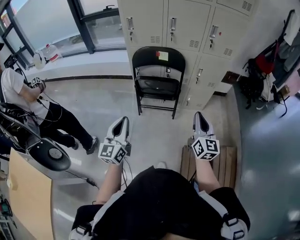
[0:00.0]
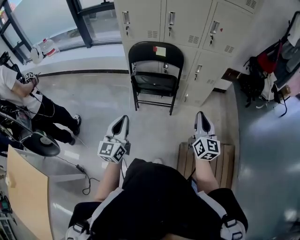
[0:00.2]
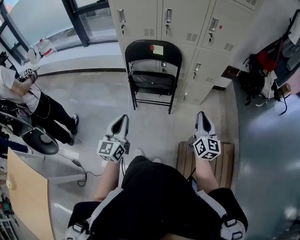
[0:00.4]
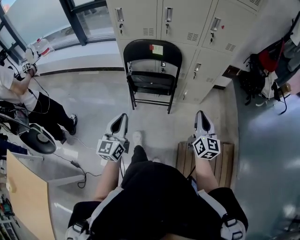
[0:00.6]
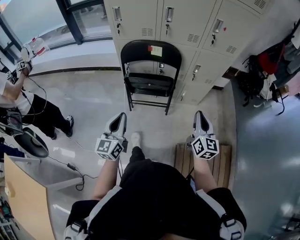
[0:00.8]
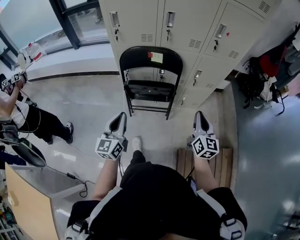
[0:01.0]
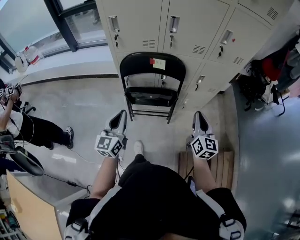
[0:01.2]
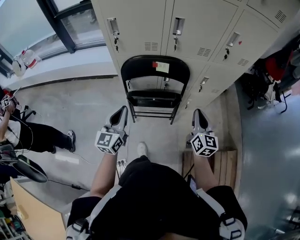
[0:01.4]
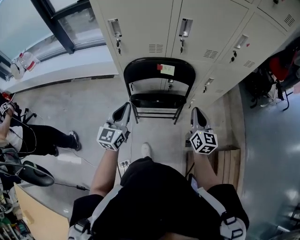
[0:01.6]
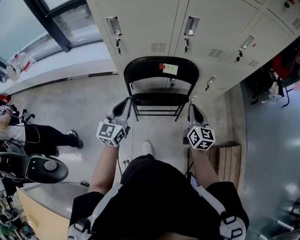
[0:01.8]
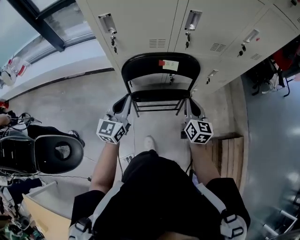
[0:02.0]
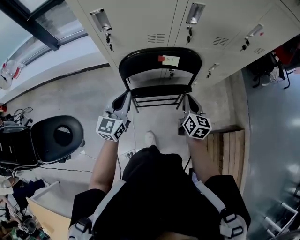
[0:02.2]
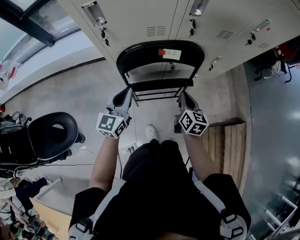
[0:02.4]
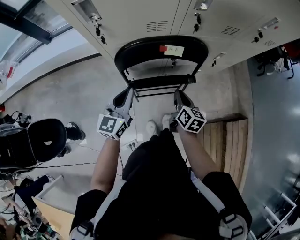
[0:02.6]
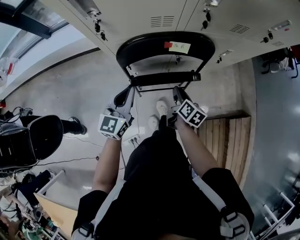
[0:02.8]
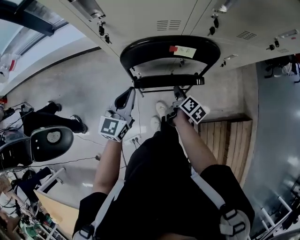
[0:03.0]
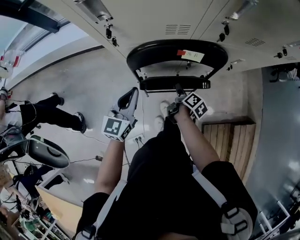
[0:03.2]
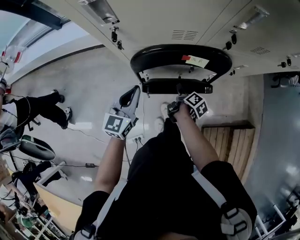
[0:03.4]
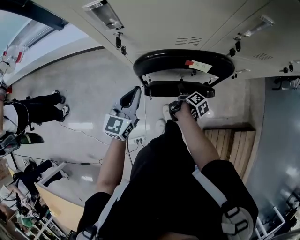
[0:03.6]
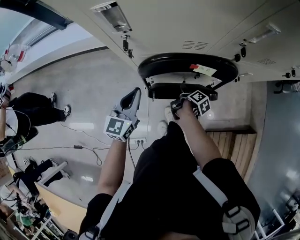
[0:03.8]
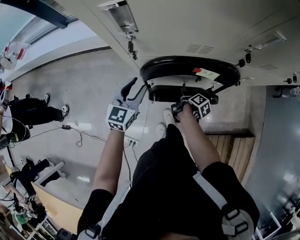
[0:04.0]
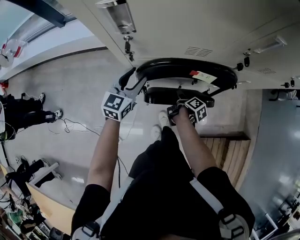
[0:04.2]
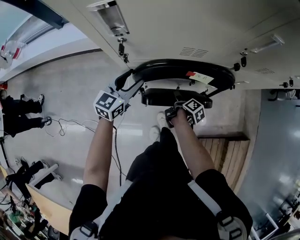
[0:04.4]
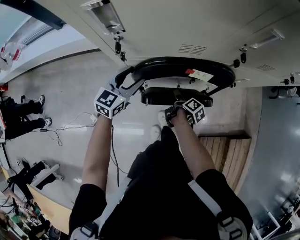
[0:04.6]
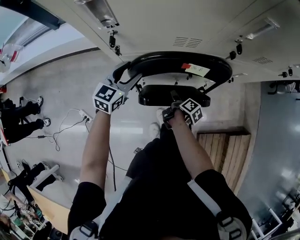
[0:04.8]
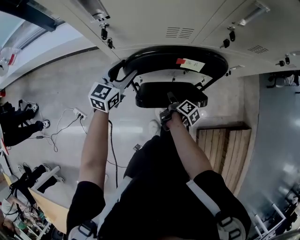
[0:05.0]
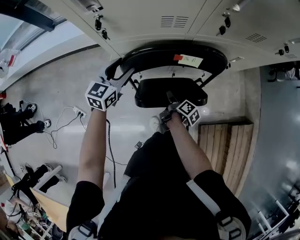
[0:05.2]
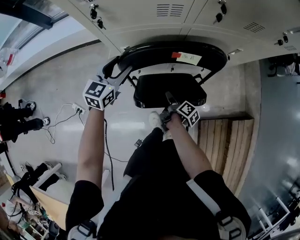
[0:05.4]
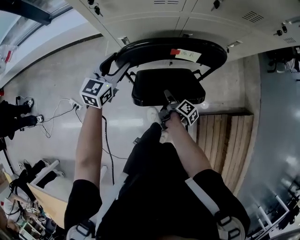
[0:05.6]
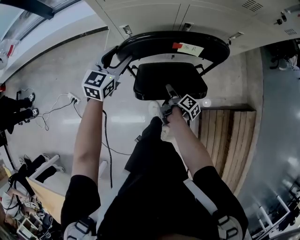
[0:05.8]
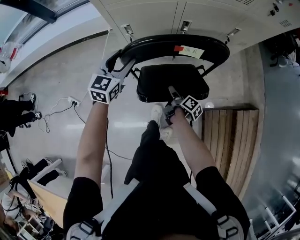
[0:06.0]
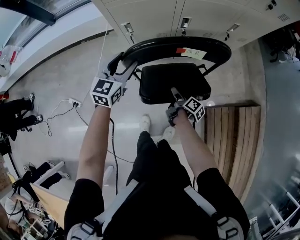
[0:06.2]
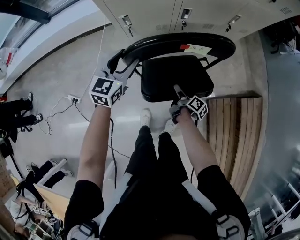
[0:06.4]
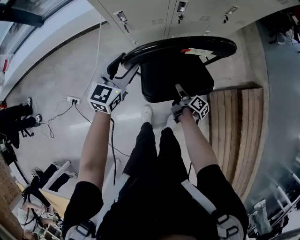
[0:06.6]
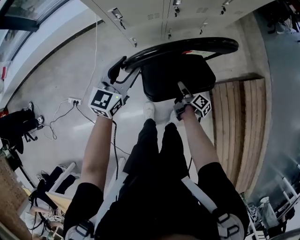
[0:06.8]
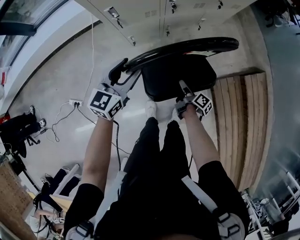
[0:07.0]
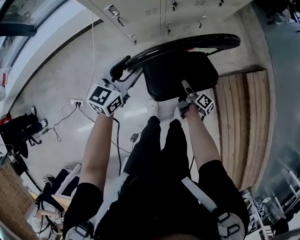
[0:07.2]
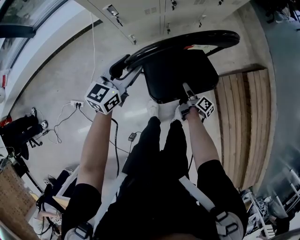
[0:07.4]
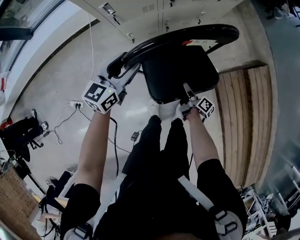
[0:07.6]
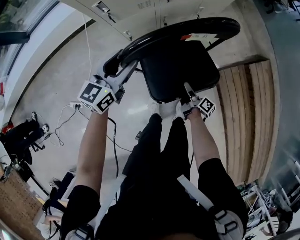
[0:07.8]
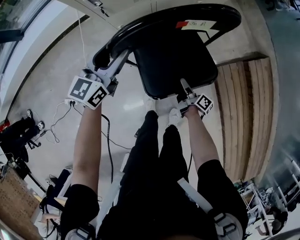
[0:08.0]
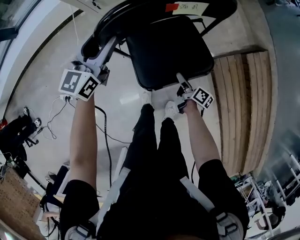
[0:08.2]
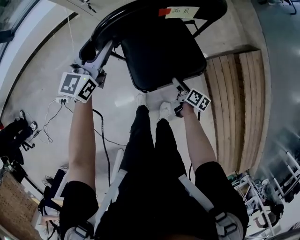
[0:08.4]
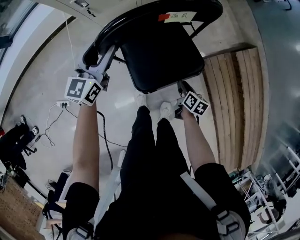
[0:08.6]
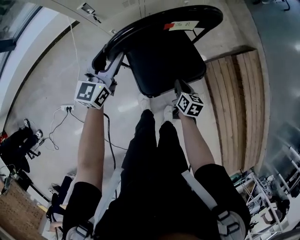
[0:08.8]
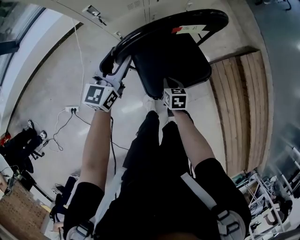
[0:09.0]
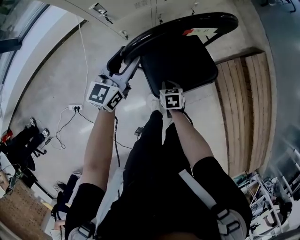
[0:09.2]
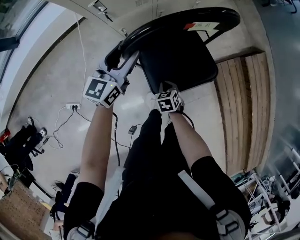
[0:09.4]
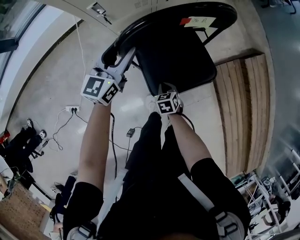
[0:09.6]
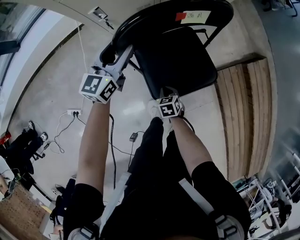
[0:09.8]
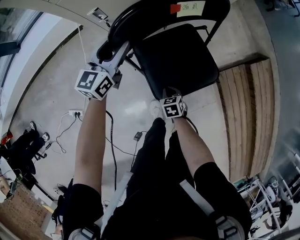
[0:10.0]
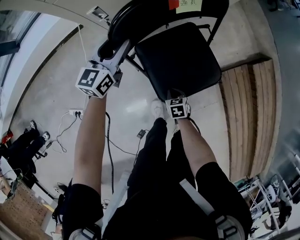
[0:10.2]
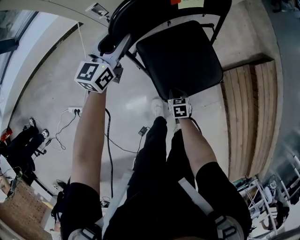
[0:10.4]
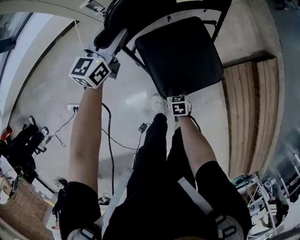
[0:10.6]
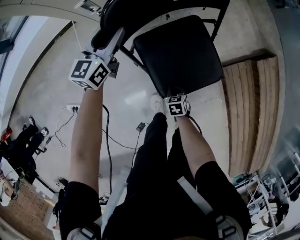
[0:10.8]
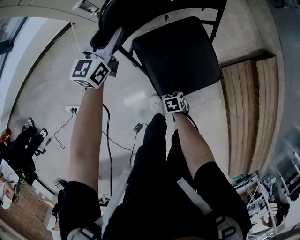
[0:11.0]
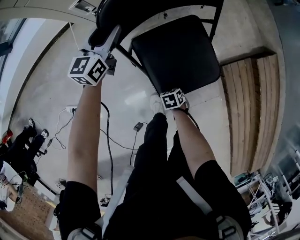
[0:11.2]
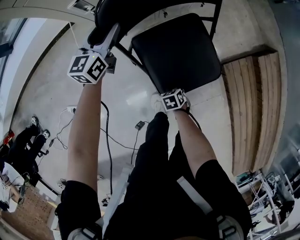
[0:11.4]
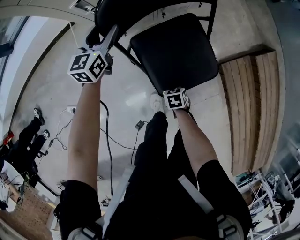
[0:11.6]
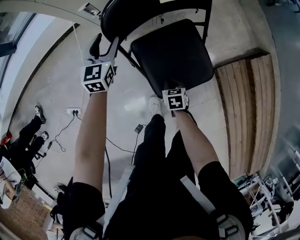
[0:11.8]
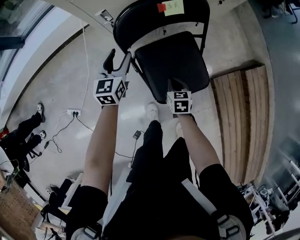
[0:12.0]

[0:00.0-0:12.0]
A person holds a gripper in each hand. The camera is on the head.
0.0 to 1.6 s: The two grippers go some 30 cm forward.
1.6 to 3.0 s: The right gripper travels downward and to the left by some 25 cm, twists approximately 50 degrees clockwise, seen from behind, and opens up, while the left gripper shifts about 15 cm downward and forward.
3.0 to 4.4 s: The right gripper shifts some 10 cm downward and forward, and changes its angle by some 20 degrees; the left gripper goes approximately 10 cm forward, and opens its fingers.
4.4 to 6.0 s: The left gripper travels backward by roughly 15 cm; the right gripper shifts approximately 20 cm backward.
6.0 to 7.6 s: The left gripper goes roughly 10 cm backward, and rotates approximately 30 degrees; the right gripper moves backward, downward and to the right, some 15 cm.
7.6 to 9.0 s: The right gripper travels to the left by approximately 10 cm, rotates around the line of its fingers by roughly 60 degrees, counterclockwise from behind, and closes its fingers.
9.0 to 10.4 s: The left gripper goes some 15 cm forward, downward and to the left. The right gripper goes roughly 15 cm downward.
10.4 to 12.0 s: The right gripper goes approximately 10 cm upward. The left gripper shifts by roughly 5 cm.

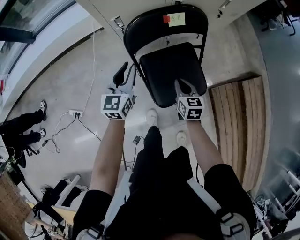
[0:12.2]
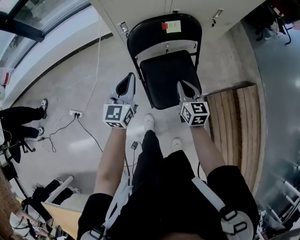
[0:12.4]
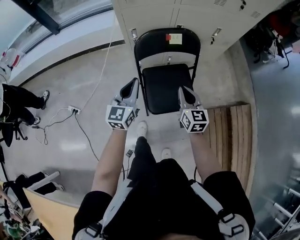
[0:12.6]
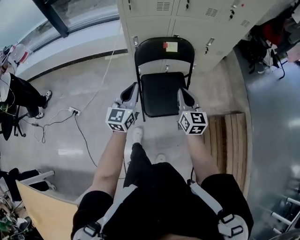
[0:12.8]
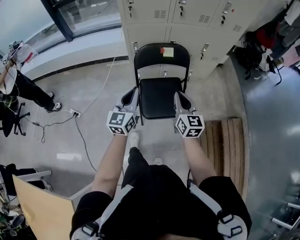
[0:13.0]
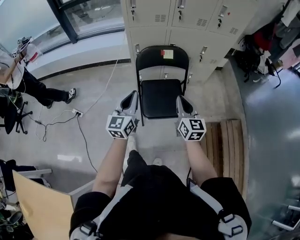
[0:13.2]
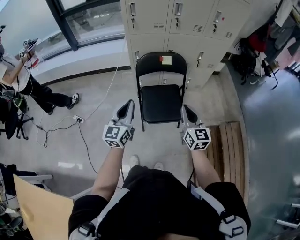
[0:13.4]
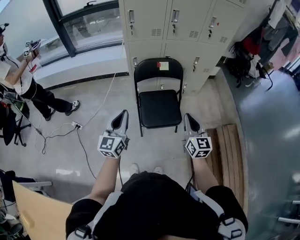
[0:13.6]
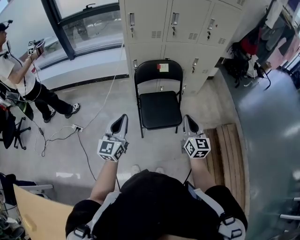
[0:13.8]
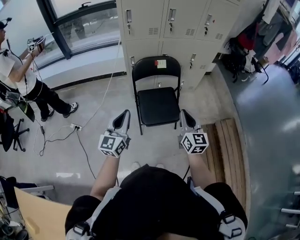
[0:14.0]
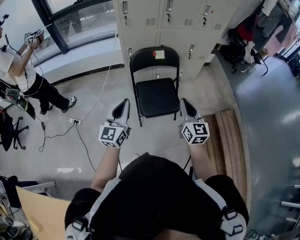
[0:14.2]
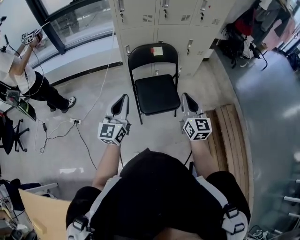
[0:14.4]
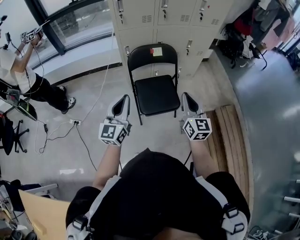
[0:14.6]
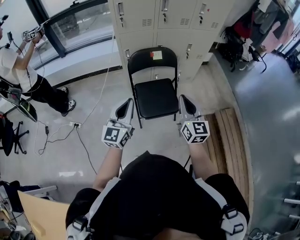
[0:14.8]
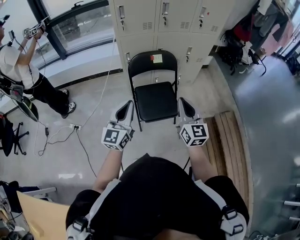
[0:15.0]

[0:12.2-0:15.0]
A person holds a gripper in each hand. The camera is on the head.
12.2 to 13.6 s: The left gripper travels backward and upward by roughly 40 cm, swivels about 20 degrees, and closes. Meanwhile the right gripper shifts approximately 40 cm upward and backward, and tips its fingers upward by about 30 degrees.
13.6 to 15.0 s: The right gripper moves approximately 5 cm.

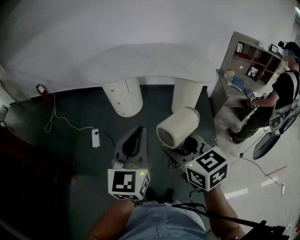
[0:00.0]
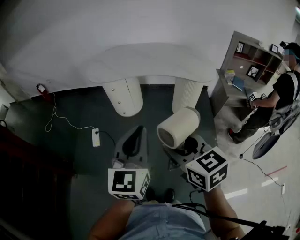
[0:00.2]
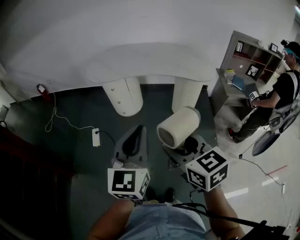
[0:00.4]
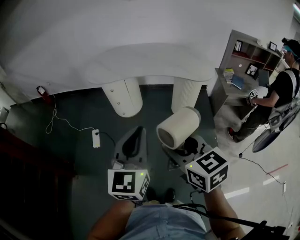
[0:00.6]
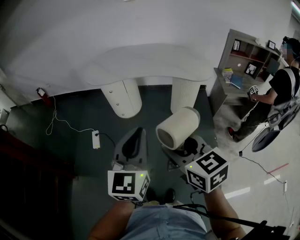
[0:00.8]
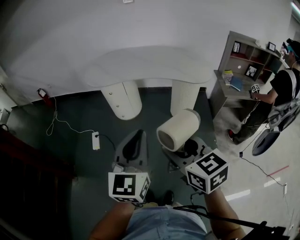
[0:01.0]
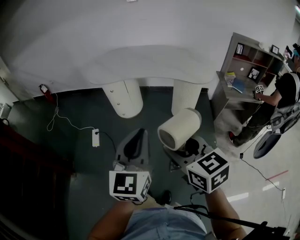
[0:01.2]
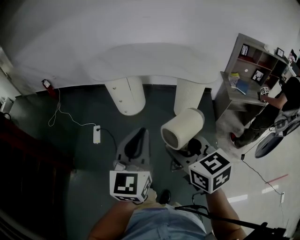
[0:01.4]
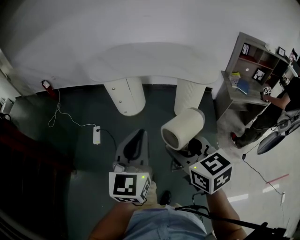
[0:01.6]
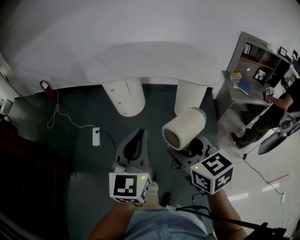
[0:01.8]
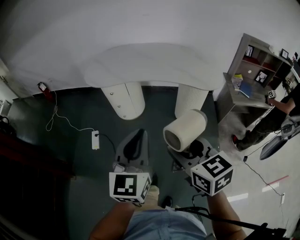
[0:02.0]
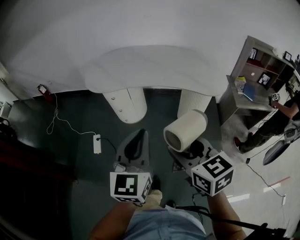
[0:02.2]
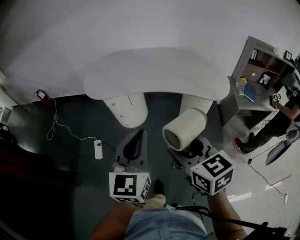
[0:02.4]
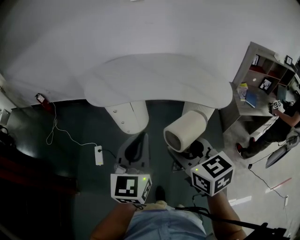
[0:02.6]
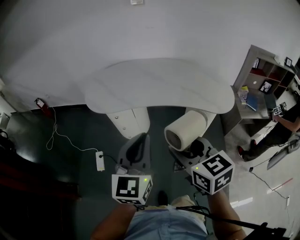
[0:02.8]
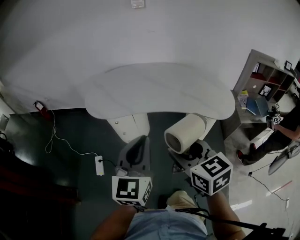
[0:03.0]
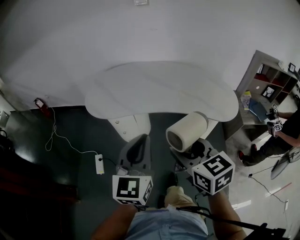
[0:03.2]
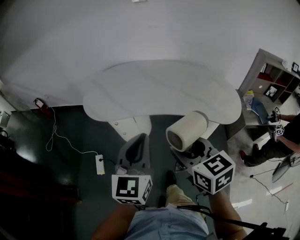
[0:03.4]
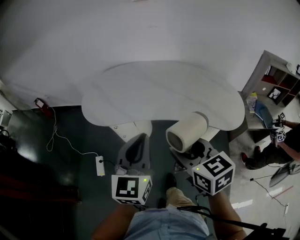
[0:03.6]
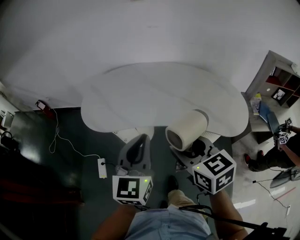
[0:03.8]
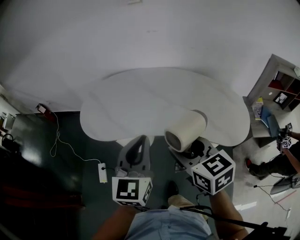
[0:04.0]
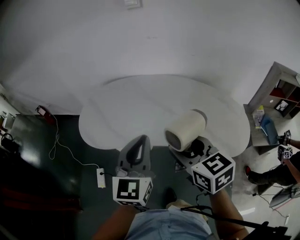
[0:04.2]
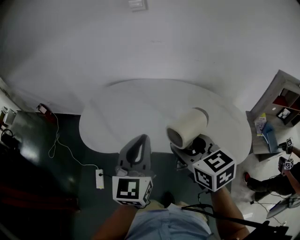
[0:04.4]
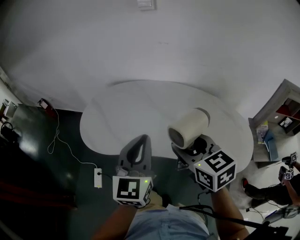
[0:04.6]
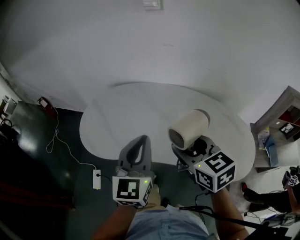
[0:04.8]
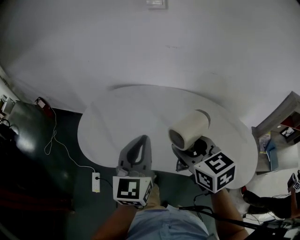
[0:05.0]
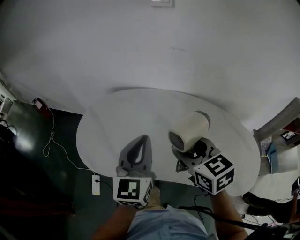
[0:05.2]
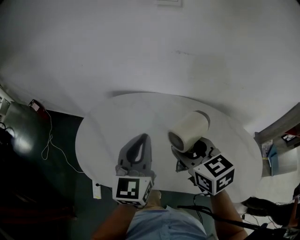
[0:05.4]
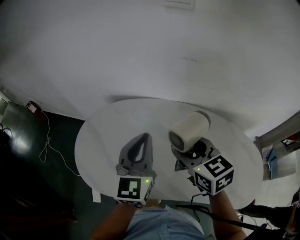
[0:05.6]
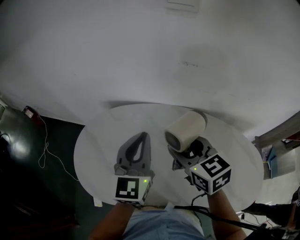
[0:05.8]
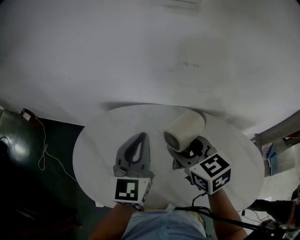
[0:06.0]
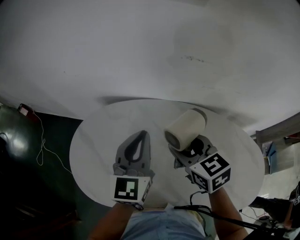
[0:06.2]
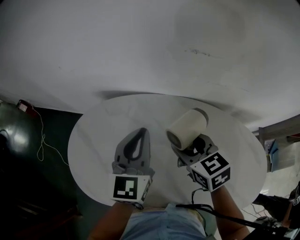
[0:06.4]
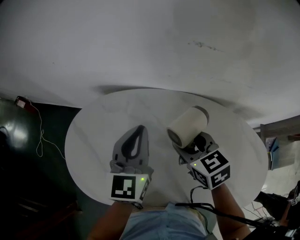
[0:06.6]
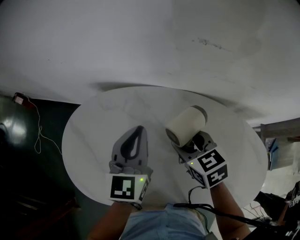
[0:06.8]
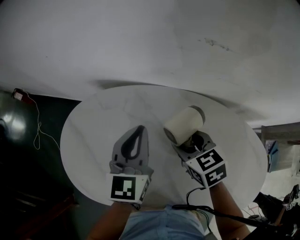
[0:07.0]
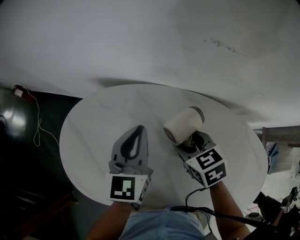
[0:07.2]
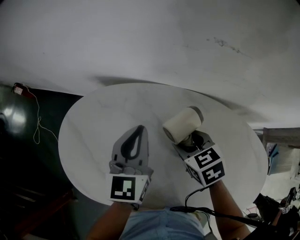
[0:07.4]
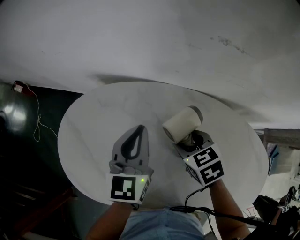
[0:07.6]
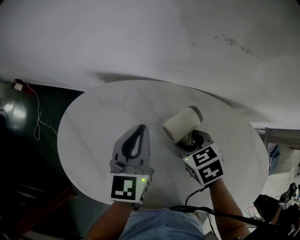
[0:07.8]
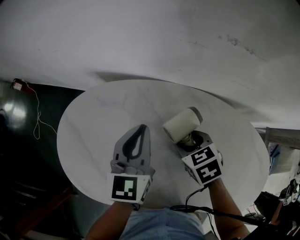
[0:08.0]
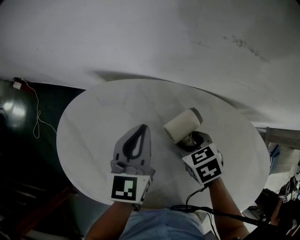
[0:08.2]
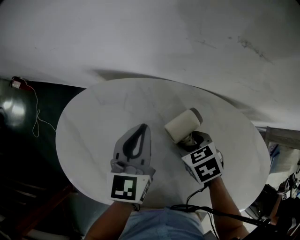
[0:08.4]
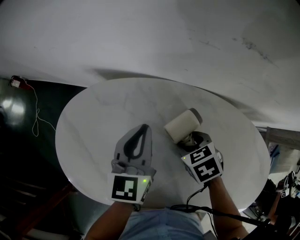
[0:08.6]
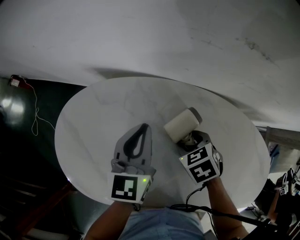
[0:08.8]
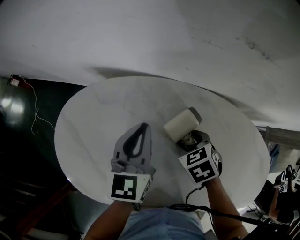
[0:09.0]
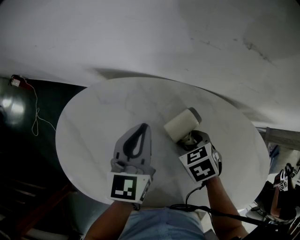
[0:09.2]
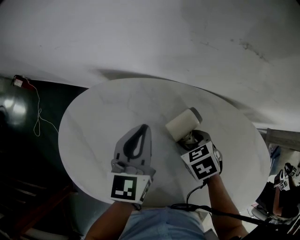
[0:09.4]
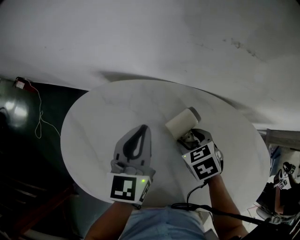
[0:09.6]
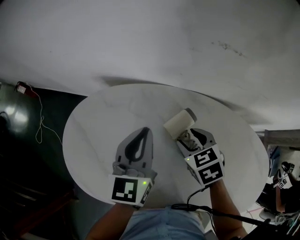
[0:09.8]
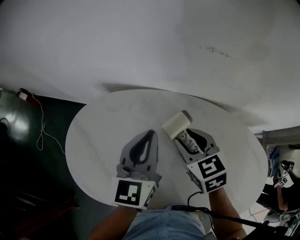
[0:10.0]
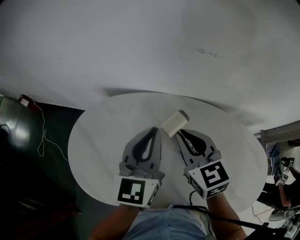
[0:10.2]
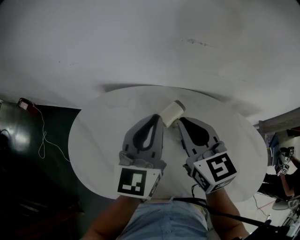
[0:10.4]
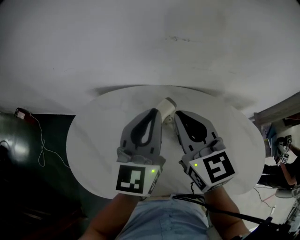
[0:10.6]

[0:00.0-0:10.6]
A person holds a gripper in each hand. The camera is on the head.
0.0 to 1.6 s: The right gripper travels to the right by some 5 cm.
1.6 to 3.0 s: The grippers both shift forward by some 30 cm.
3.0 to 4.6 s: Both grippers move forward, approximately 30 cm.
4.6 to 6.0 s: Both grippers travel together forward, approximately 35 cm.
6.0 to 7.6 s: The right gripper shifts roughly 20 cm downward, and rotates about 30 degrees. The left gripper goes roughly 15 cm downward and forward.
7.6 to 9.0 s: The right gripper travels downward by approximately 5 cm.
9.0 to 10.6 s: The left gripper shifts roughly 20 cm upward and backward, and rotates roughly 20 degrees; the right gripper shifts approximately 30 cm upward, tips its fingers upward by some 60 degrees, and closes its fingers.
